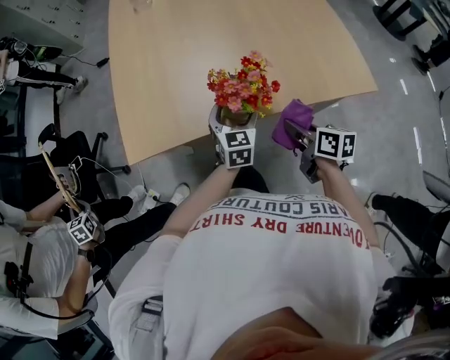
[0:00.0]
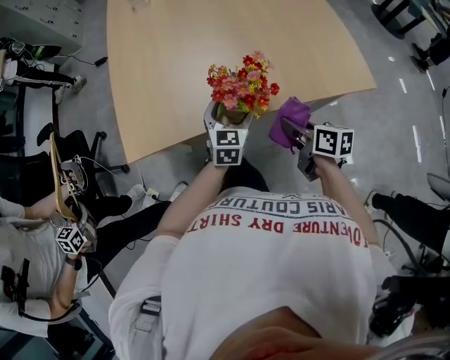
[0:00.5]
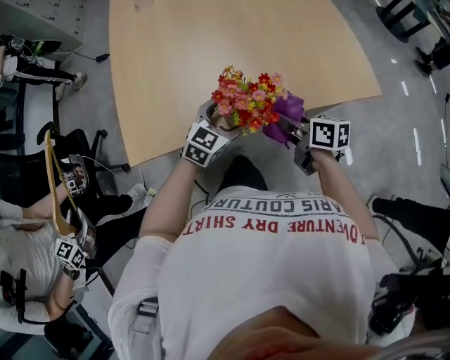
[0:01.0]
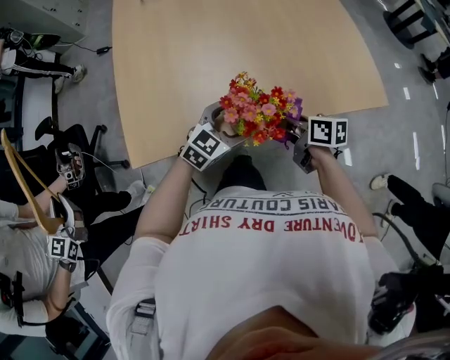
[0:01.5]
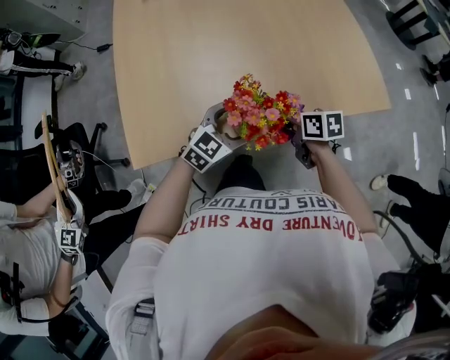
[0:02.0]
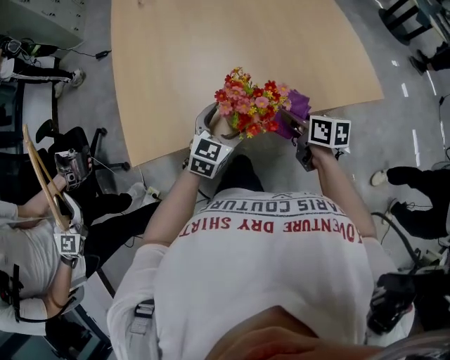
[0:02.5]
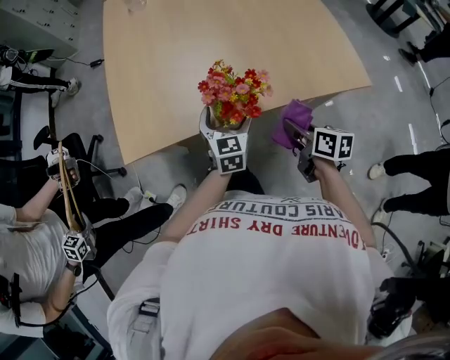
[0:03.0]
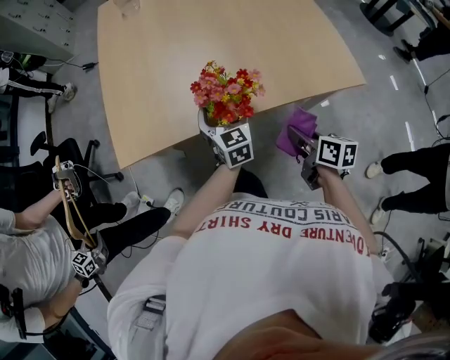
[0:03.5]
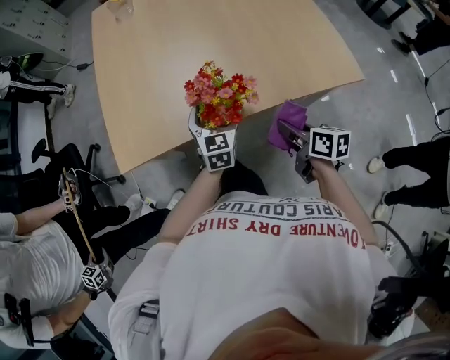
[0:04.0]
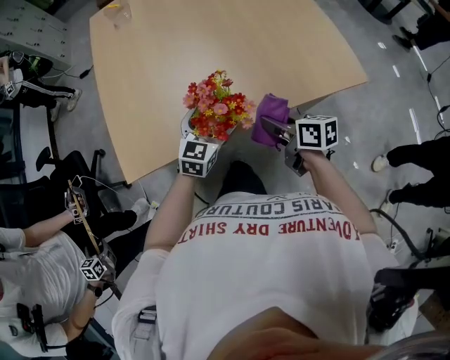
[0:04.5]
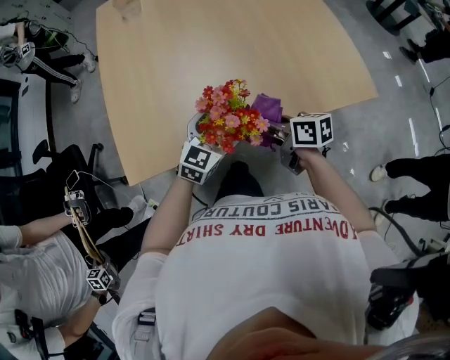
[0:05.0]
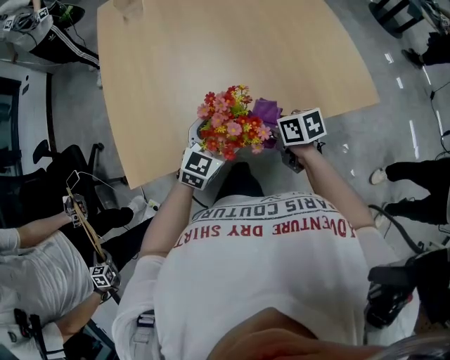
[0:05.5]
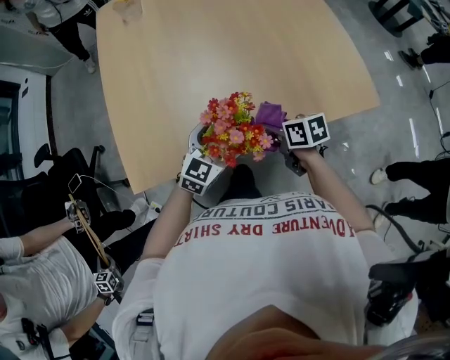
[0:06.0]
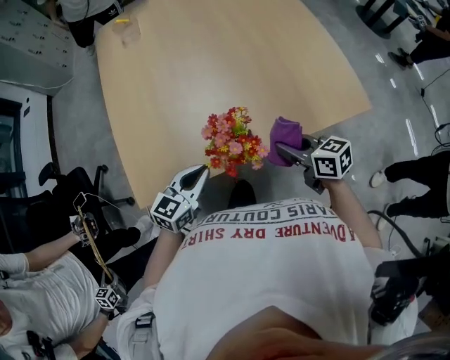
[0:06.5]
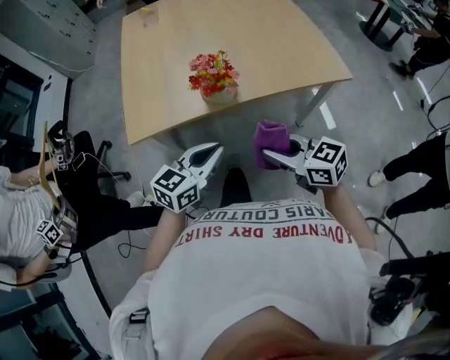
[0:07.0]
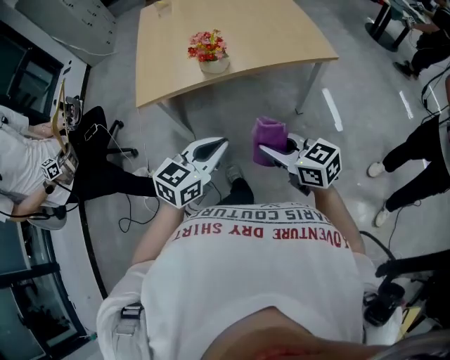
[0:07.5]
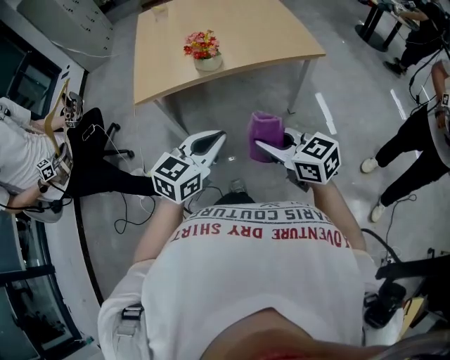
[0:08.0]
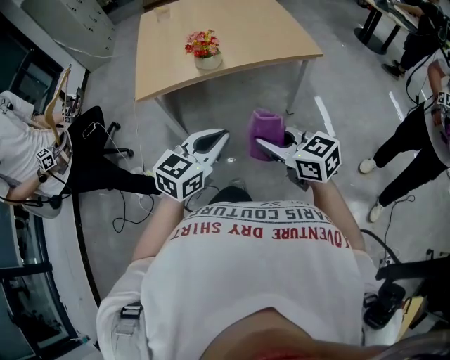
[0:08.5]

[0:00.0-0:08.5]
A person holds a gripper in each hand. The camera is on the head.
0:00.0 to 0:02.0: The right gripper is displaced forward by approximately 5 cm, while the left gripper turns by about 50 degrees.
0:02.0 to 0:04.0: The right gripper moves backward and to the right, about 10 cm. Meanwhile the left gripper changes its angle by approximately 50 degrees.
0:04.0 to 0:06.5: The right gripper heads forward and upward, covering approximately 10 cm, and swivels some 20 degrees. The left gripper heads to the left and upward, covering approximately 10 cm, rotates approximately 30 degrees, and closes.
0:06.5 to 0:08.5: Both grippers are carried backward, about 50 cm. The right gripper changes its angle by about 30 degrees.

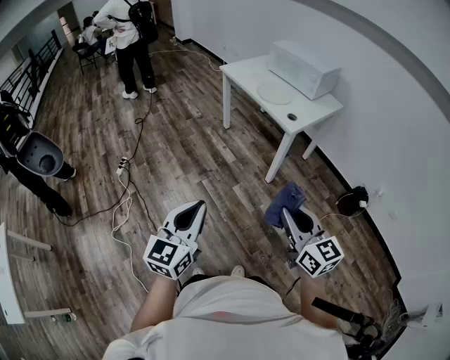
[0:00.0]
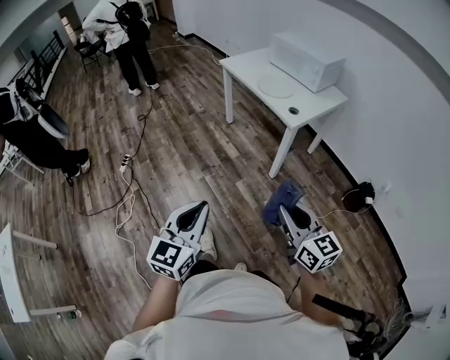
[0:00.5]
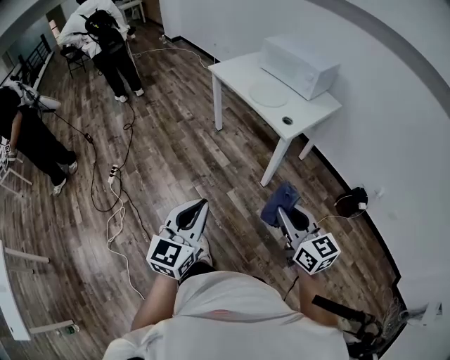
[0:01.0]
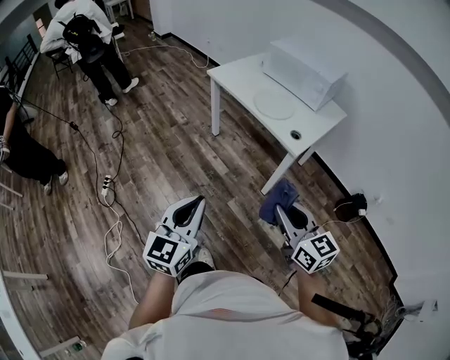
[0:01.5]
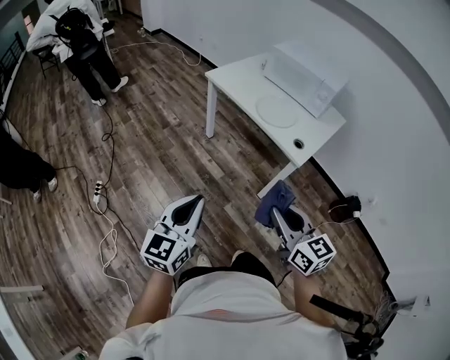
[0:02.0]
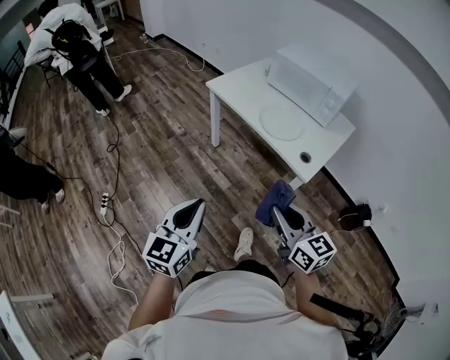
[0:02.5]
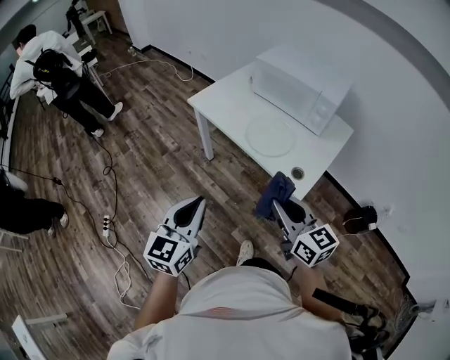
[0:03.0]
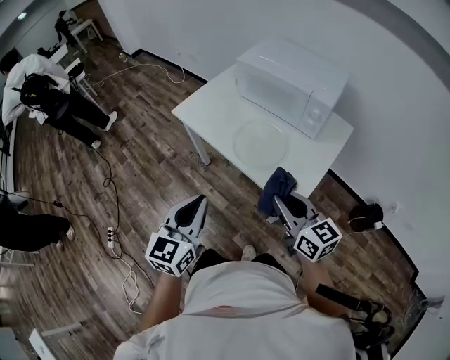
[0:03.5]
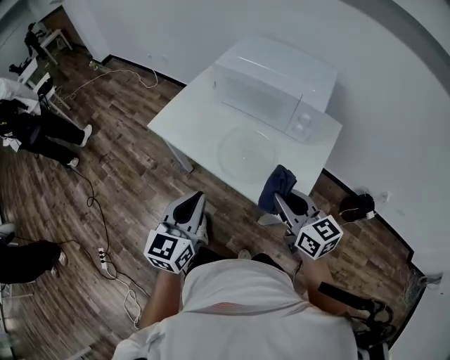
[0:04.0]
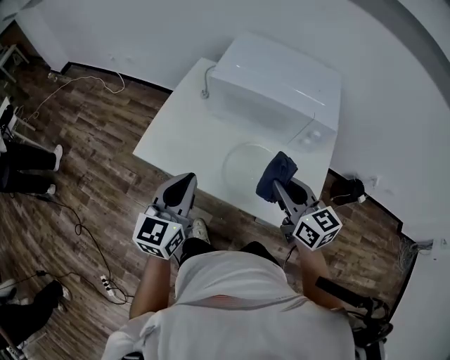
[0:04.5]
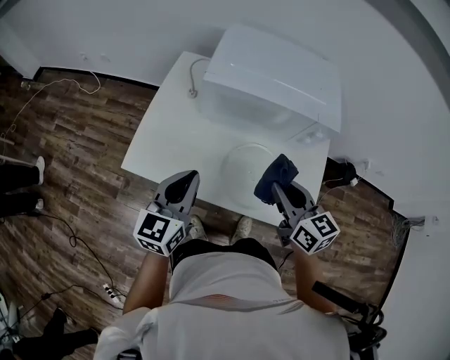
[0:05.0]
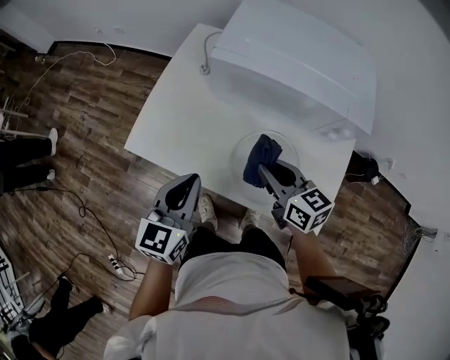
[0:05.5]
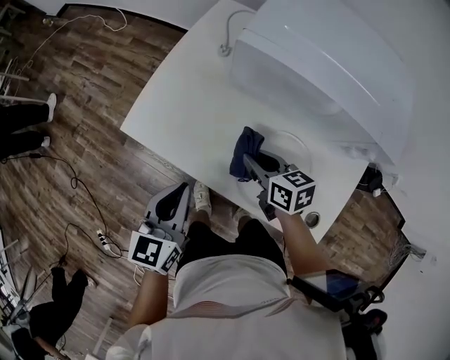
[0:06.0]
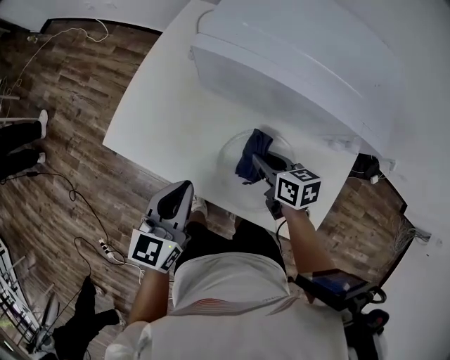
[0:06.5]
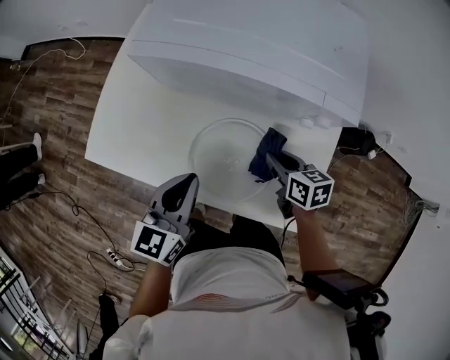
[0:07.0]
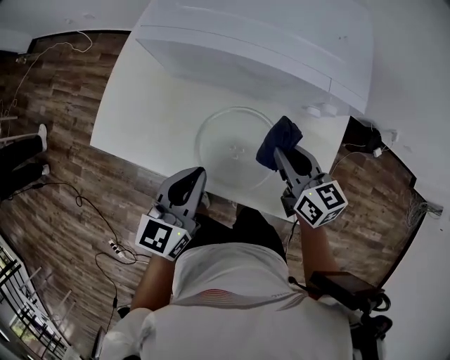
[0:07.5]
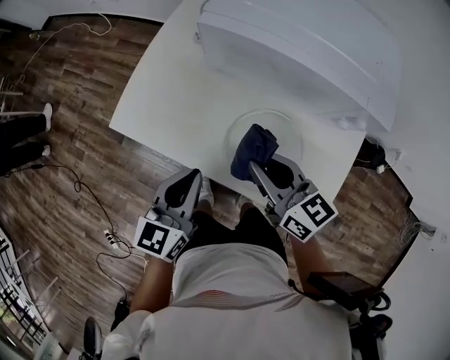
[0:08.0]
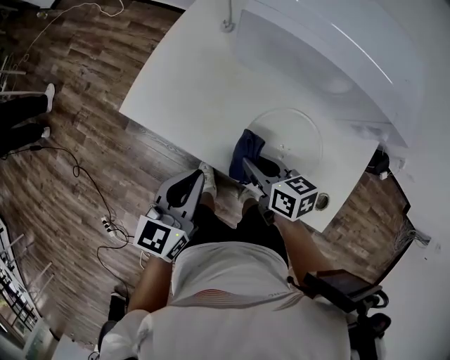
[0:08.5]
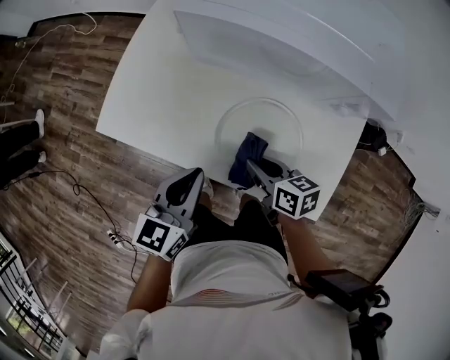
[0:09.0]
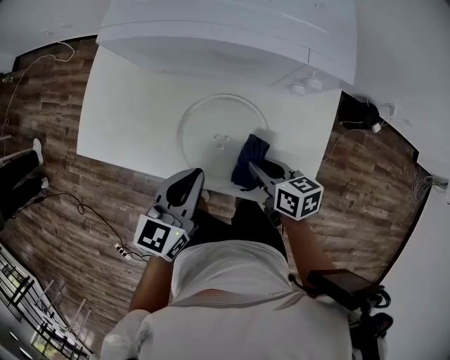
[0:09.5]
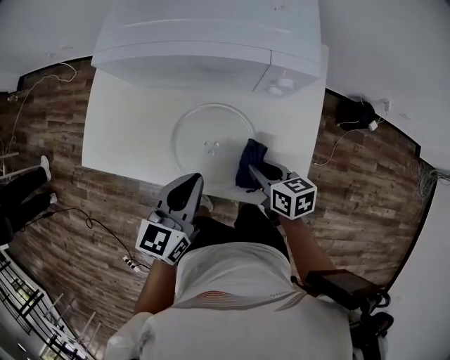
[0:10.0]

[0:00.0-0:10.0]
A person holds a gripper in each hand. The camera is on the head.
0:00.0 to 0:02.0: The grippers both shift forward by approximately 30 cm.
0:02.0 to 0:04.0: The pair of grippers is taken forward and to the right, some 40 cm.
0:04.0 to 0:06.0: The two grippers go roughly 35 cm forward, downward and to the left. The right gripper rotates roughly 30 degrees.
0:06.0 to 0:08.0: The left gripper travels to the right by some 5 cm, while the right gripper shifts approximately 15 cm upward and backward, reaches roughly 20 cm to the right, then returns, and changes its angle by approximately 20 degrees.
0:08.0 to 0:10.0: The left gripper is displaced to the right by roughly 15 cm. Meanwhile the right gripper moves to the right, downward and backward, roughly 25 cm, and turns by approximately 30 degrees.

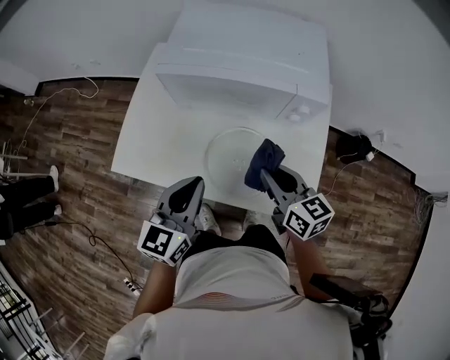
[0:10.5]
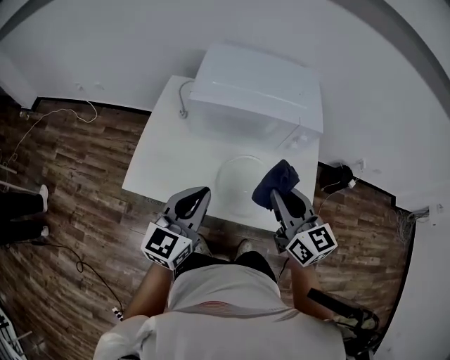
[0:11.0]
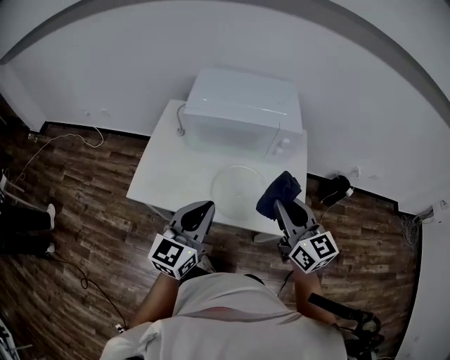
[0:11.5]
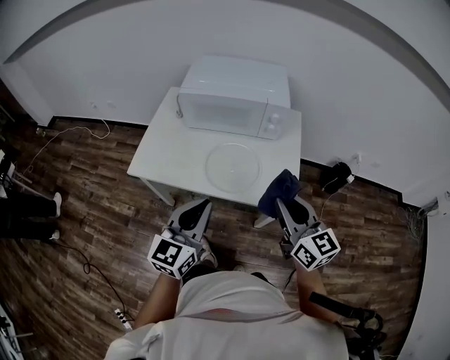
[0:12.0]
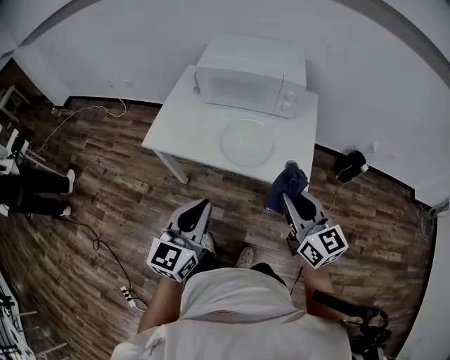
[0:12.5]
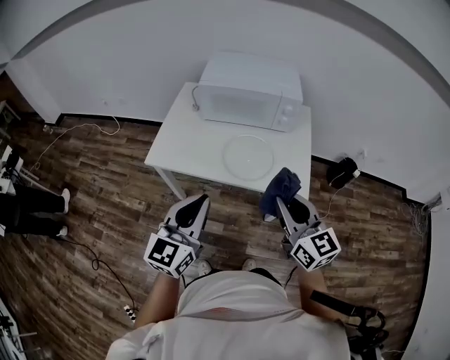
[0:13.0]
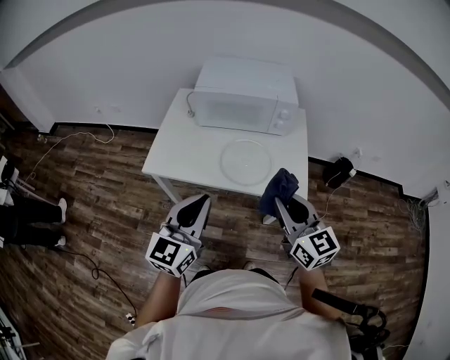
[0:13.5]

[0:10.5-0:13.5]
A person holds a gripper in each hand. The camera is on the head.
0:10.5 to 0:12.0: Both grippers move backward and upward, approximately 25 cm. The right gripper swivels approximately 20 degrees.
0:12.0 to 0:13.5: The left gripper shifts some 5 cm to the left; the right gripper shifts about 10 cm to the left and backward.

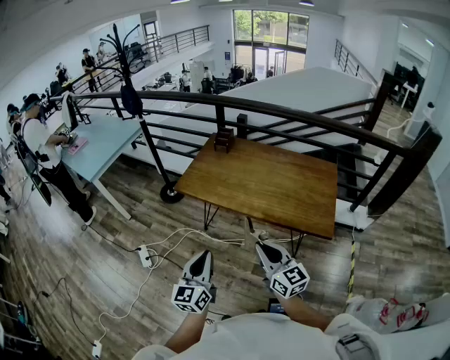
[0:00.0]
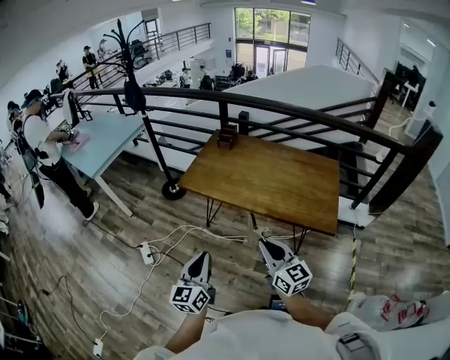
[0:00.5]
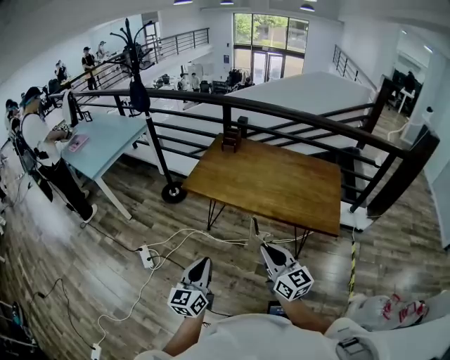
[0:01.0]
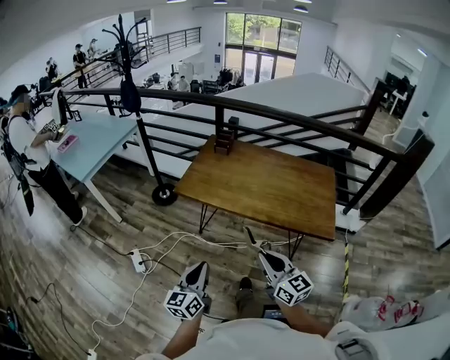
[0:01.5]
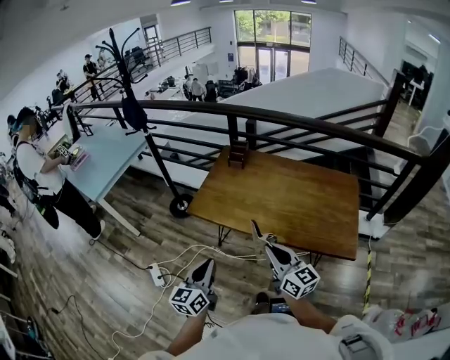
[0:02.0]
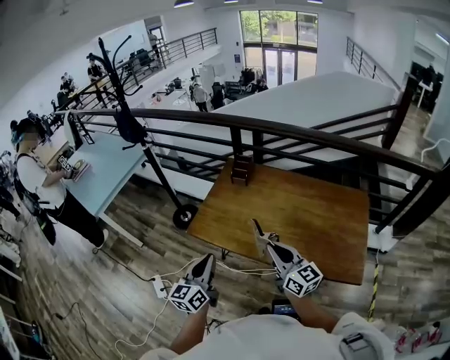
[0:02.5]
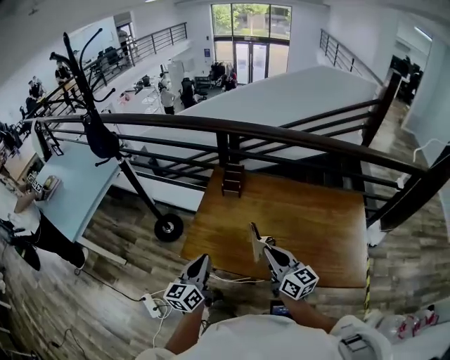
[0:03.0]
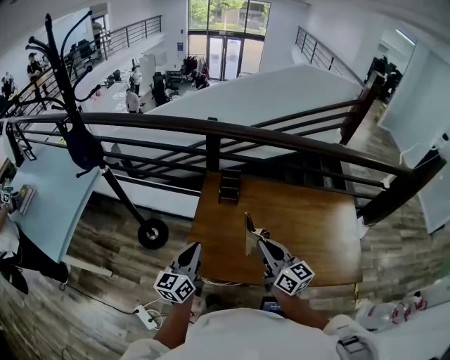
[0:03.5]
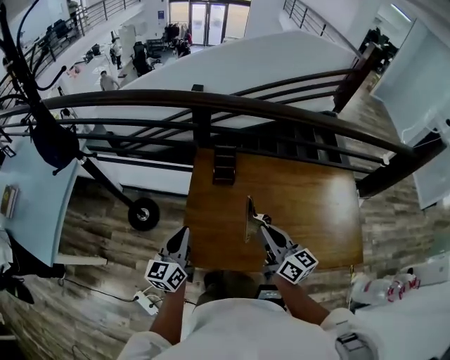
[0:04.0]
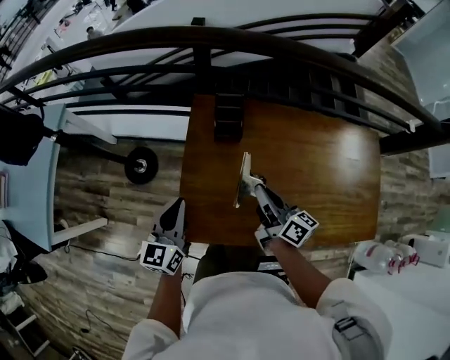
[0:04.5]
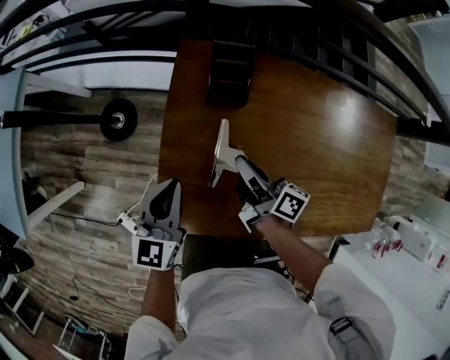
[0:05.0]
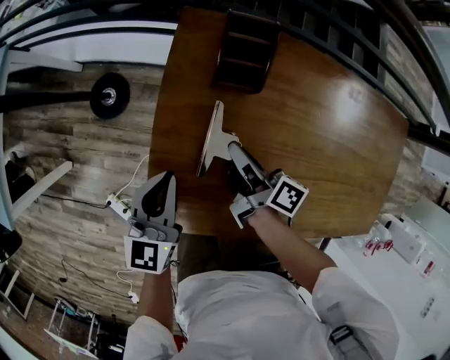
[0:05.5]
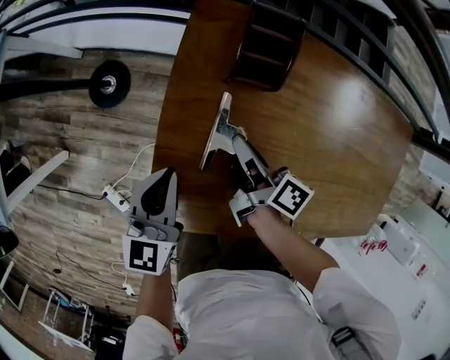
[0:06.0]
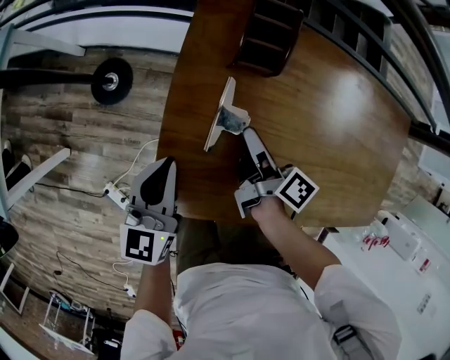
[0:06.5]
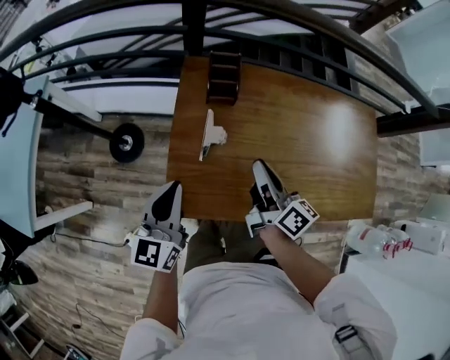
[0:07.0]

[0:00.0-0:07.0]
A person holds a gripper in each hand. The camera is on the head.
0:00.0 to 0:02.0: The left gripper heads forward and to the left, covering about 20 cm; the right gripper is displaced forward by some 15 cm.
0:02.0 to 0:03.5: The two grippers go approximately 40 cm forward.
0:03.5 to 0:05.0: Both grippers travel together downward and forward, approximately 35 cm. The right gripper rolls clockwise, seen from behind, by roughly 50 degrees; the left gripper swivels some 20 degrees.
0:05.0 to 0:07.0: The grippers both shift upward and backward by roughly 15 cm. The right gripper turns by some 20 degrees.
